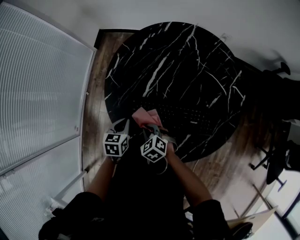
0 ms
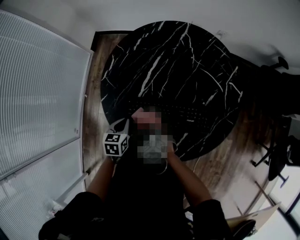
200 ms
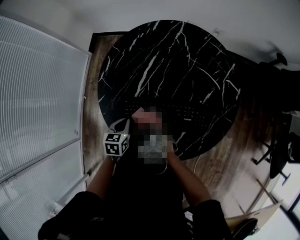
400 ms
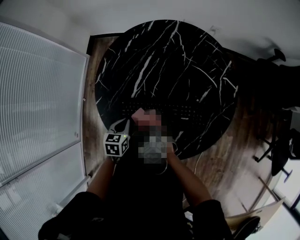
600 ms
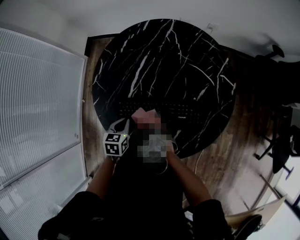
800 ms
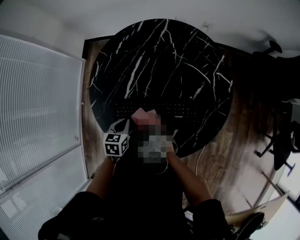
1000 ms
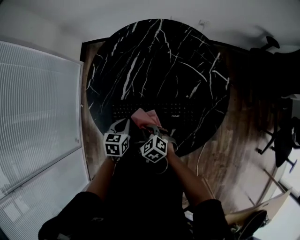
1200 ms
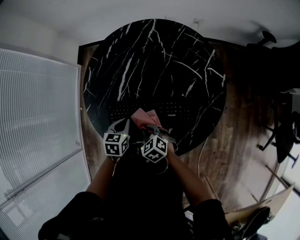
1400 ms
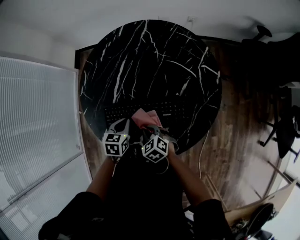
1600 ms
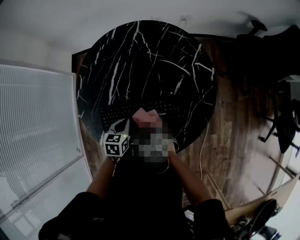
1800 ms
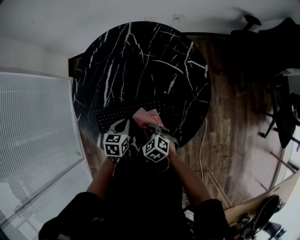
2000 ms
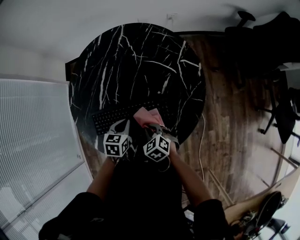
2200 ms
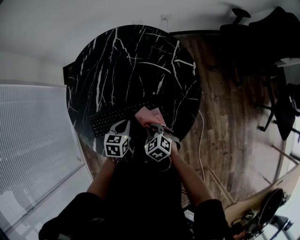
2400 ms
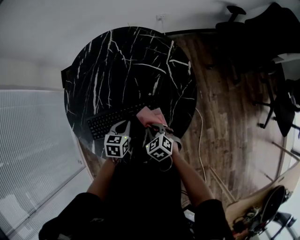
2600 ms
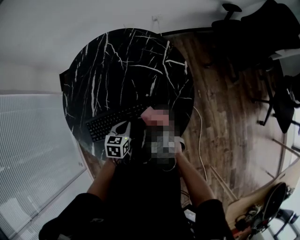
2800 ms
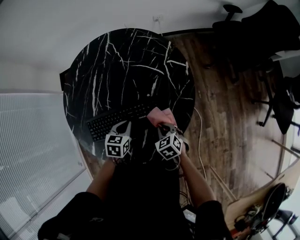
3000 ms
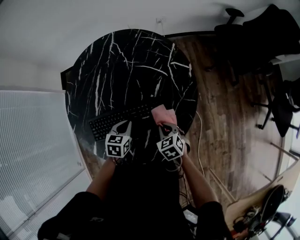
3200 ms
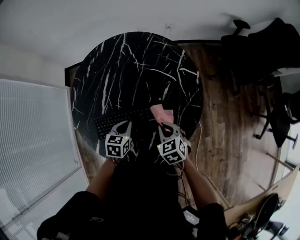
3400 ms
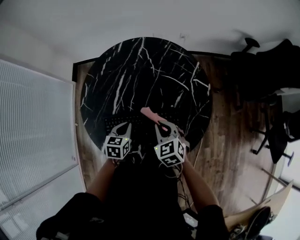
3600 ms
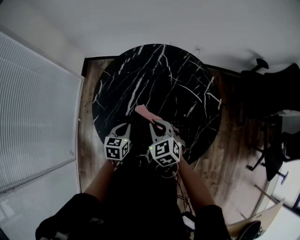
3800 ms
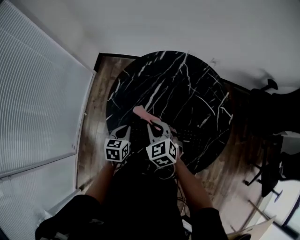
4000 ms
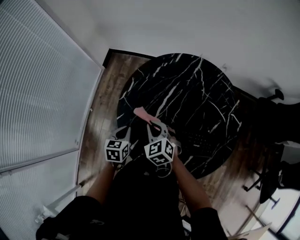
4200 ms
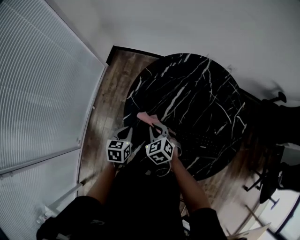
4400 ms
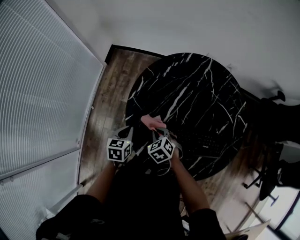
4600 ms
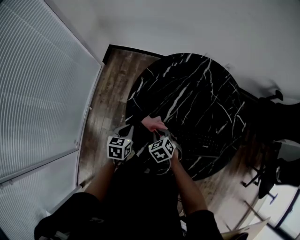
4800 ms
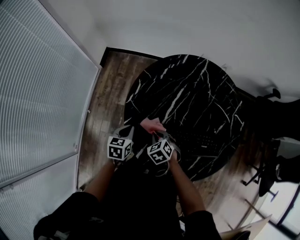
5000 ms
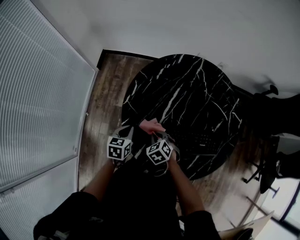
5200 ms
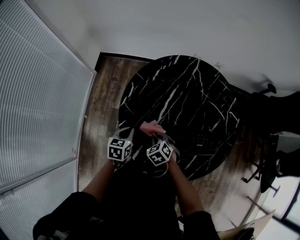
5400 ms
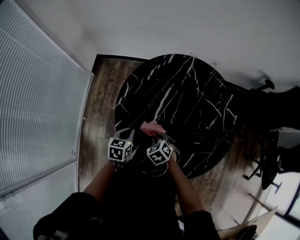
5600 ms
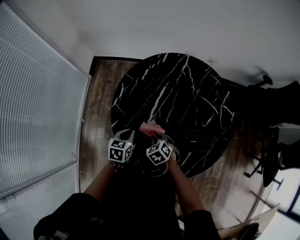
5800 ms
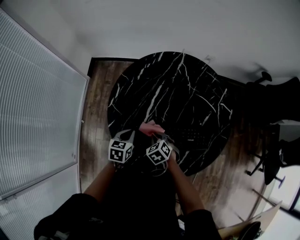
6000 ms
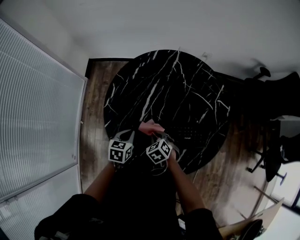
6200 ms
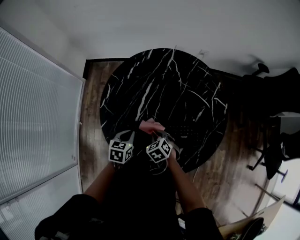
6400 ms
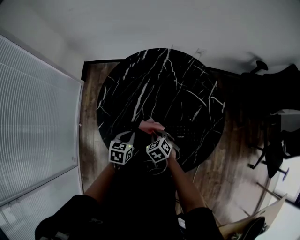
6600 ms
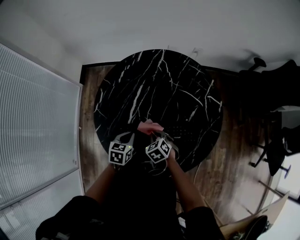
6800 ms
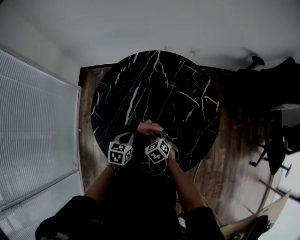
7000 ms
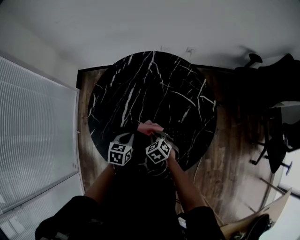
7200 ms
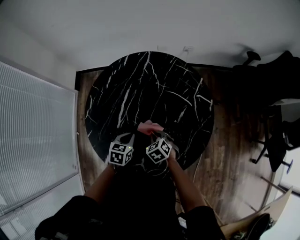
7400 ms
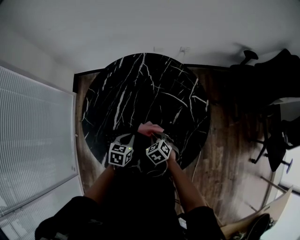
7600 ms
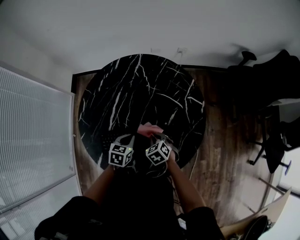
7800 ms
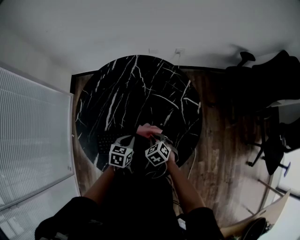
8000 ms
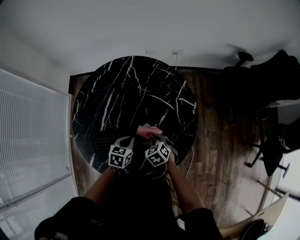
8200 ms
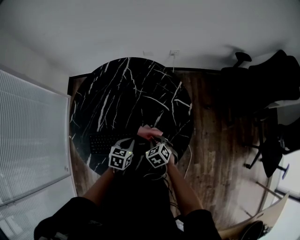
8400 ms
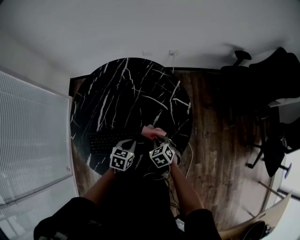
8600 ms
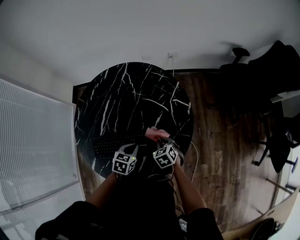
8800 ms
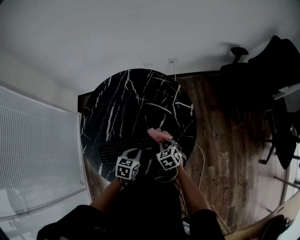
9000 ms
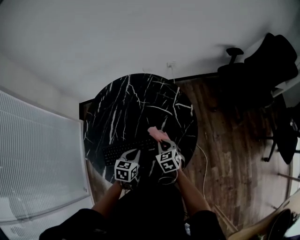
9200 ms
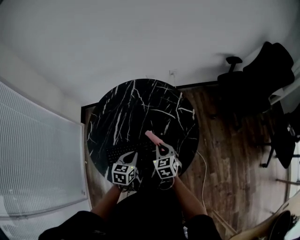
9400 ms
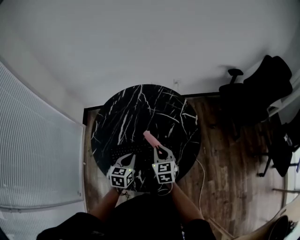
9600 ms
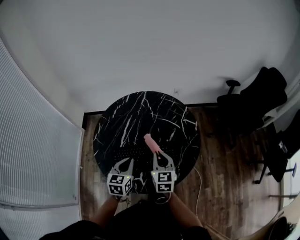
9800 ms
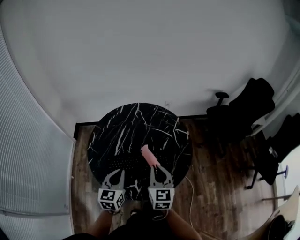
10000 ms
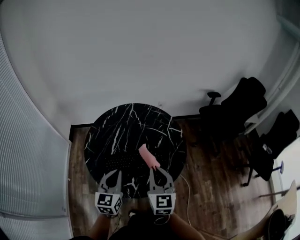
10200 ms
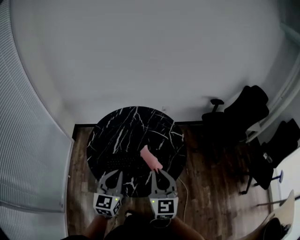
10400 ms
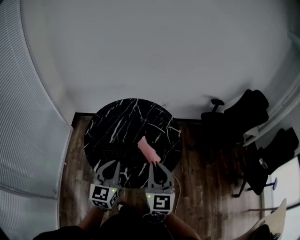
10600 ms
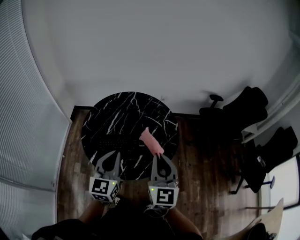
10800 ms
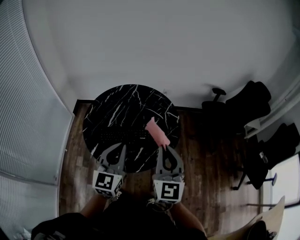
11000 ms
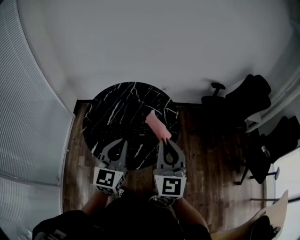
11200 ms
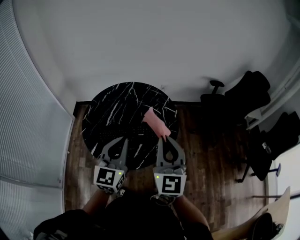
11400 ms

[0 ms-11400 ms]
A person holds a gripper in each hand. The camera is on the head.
0 ms to 1400 ms: The grippers both shift to the right by about 10 cm.
1400 ms to 2800 ms: Both grippers travel together to the right, some 15 cm. The right gripper turns by roughly 20 degrees.
2800 ms to 4200 ms: The grippers both shift to the left by some 35 cm. The left gripper rotates about 30 degrees, while the right gripper turns by approximately 30 degrees.
4200 ms to 5600 ms: The right gripper moves downward, approximately 10 cm, and rotates about 20 degrees.
5600 ms to 7200 ms: Both grippers move to the right, approximately 15 cm.
7200 ms to 8600 ms: Both grippers travel together to the right, about 20 cm.
8600 ms to 10000 ms: The right gripper moves upward and backward, approximately 30 cm, and tips its fingers upward by approximately 40 degrees. The left gripper moves upward, to the left and backward, about 30 cm, and tilts its fingers about 30 degrees upward.
10000 ms to 11400 ms: Both grippers travel together upward, to the right and backward, some 25 cm. The right gripper rotates some 20 degrees; the left gripper rotates some 20 degrees.

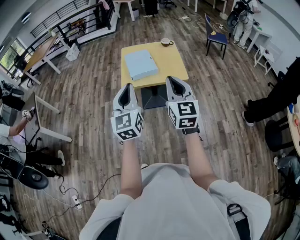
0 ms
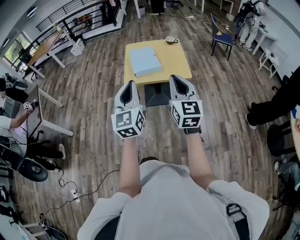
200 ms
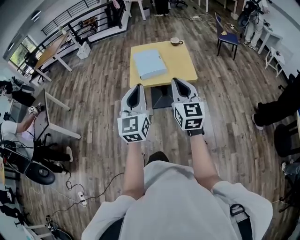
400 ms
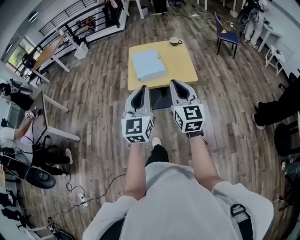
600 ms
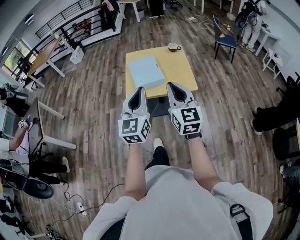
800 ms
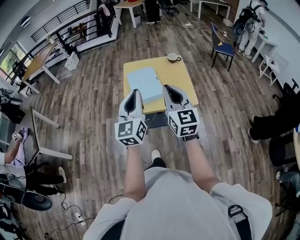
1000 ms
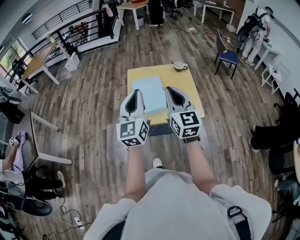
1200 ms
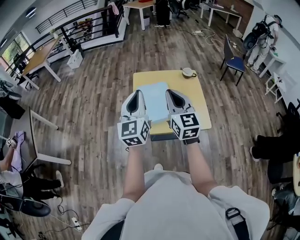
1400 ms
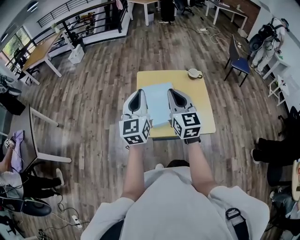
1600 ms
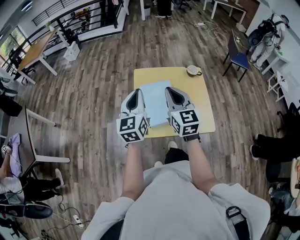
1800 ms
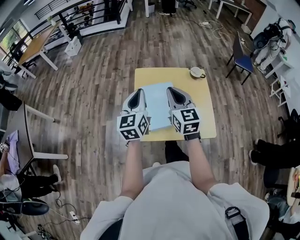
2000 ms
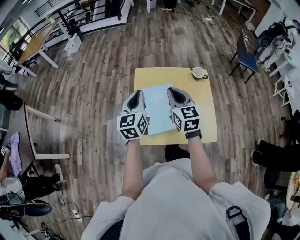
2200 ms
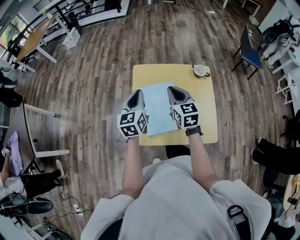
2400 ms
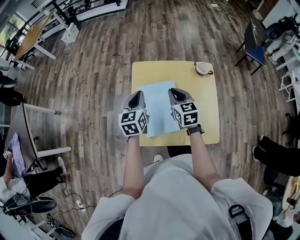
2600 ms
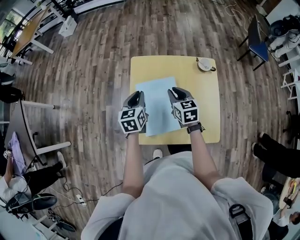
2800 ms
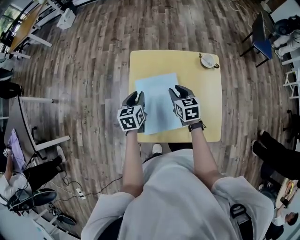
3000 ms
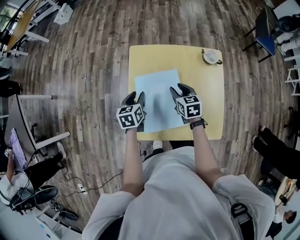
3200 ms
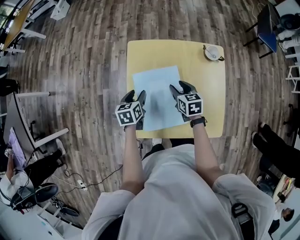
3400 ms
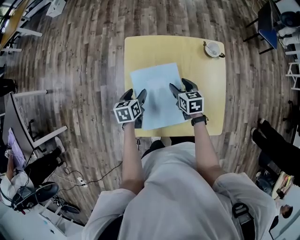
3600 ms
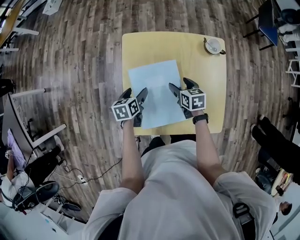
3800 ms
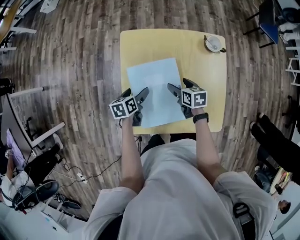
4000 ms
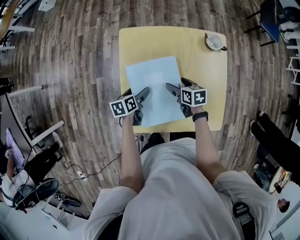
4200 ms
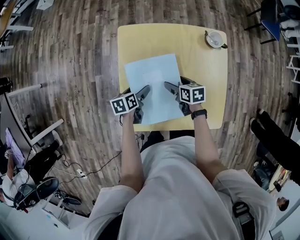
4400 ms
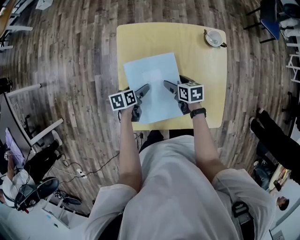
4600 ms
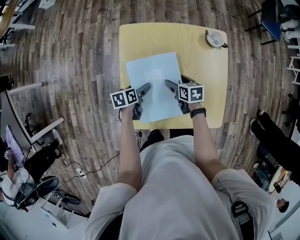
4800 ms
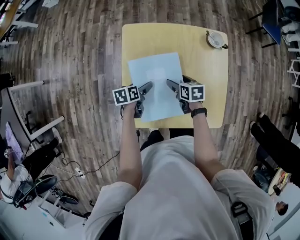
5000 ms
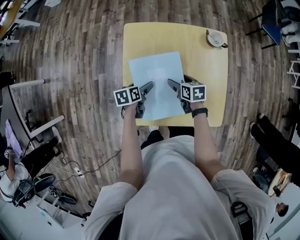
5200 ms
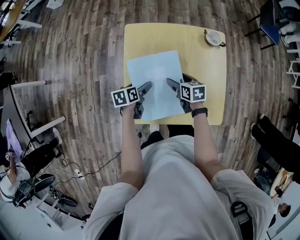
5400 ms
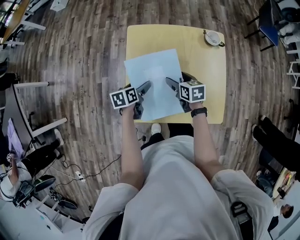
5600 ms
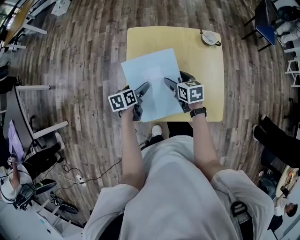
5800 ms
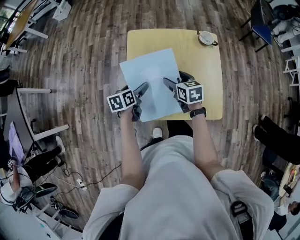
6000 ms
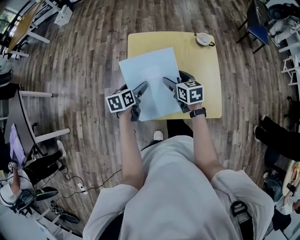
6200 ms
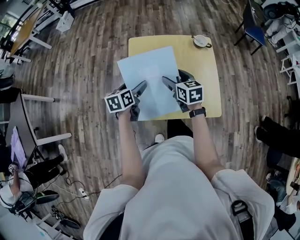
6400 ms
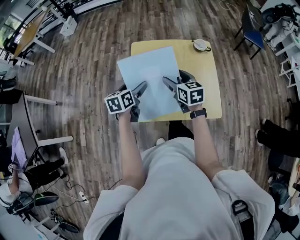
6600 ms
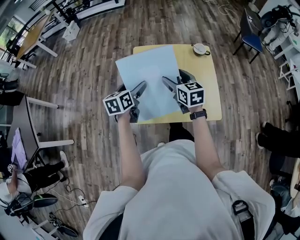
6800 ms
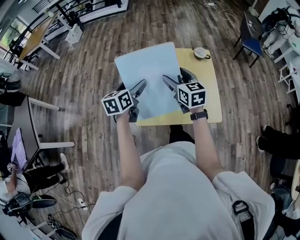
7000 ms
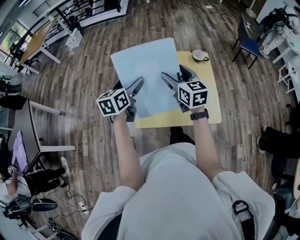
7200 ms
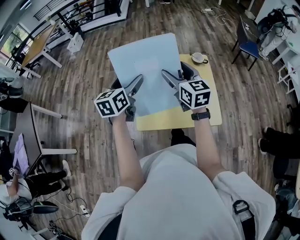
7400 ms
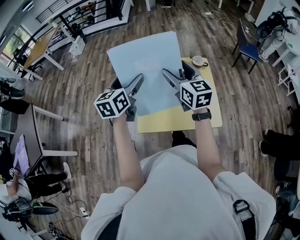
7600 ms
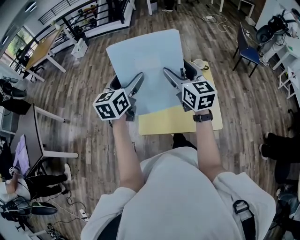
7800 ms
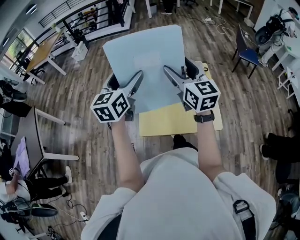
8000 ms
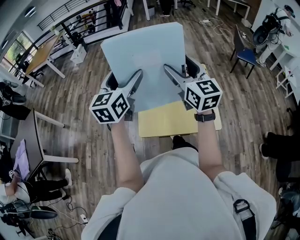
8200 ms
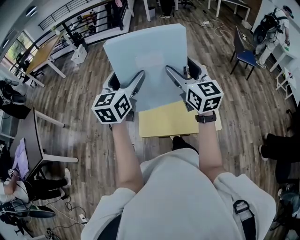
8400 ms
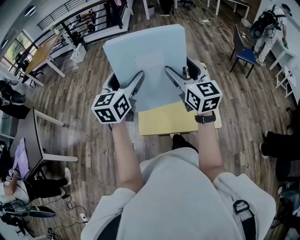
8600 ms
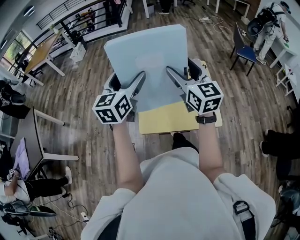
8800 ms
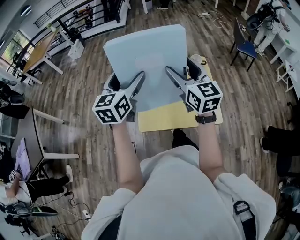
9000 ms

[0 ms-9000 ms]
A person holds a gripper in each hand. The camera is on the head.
0 ms to 1600 ms: Both grippers are carried forward, about 40 cm.
1600 ms to 3000 ms: The two grippers go about 35 cm downward and forward. The right gripper points its fingers approximately 30 degrees further downward; the left gripper tips its fingers downward by roughly 40 degrees.
3000 ms to 4400 ms: Both grippers move downward, roughly 15 cm. The right gripper changes its angle by roughly 30 degrees, and opens its fingers. Meanwhile the left gripper turns by about 30 degrees, and opens.
4400 ms to 6000 ms: Both grippers travel together upward, approximately 10 cm.
6000 ms to 7600 ms: The two grippers go approximately 30 cm upward. The right gripper points its fingers approximately 30 degrees further upward, while the left gripper changes its angle by about 40 degrees.
7600 ms to 9000 ms: The left gripper shifts roughly 5 cm upward. Meanwhile the right gripper ends up roughly 5 cm from where it was.

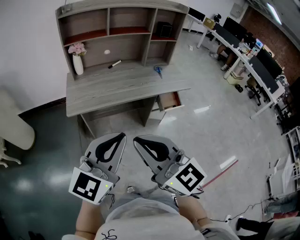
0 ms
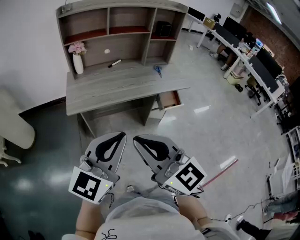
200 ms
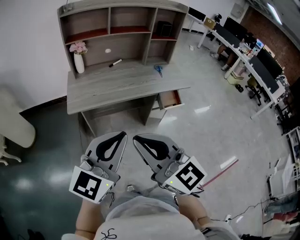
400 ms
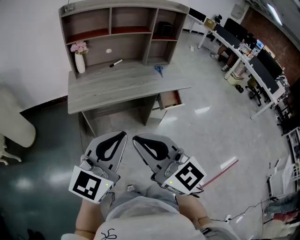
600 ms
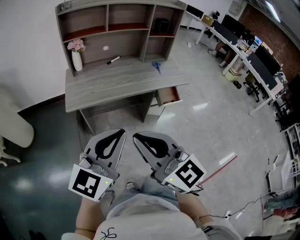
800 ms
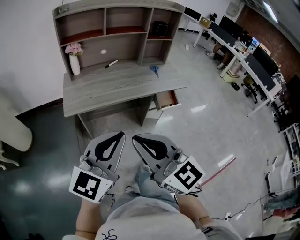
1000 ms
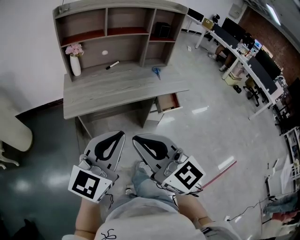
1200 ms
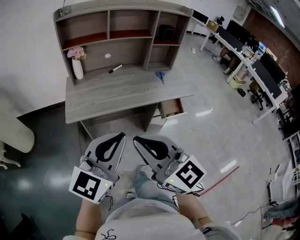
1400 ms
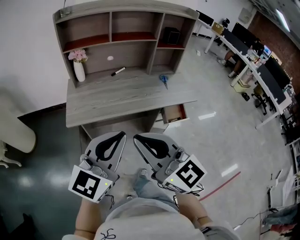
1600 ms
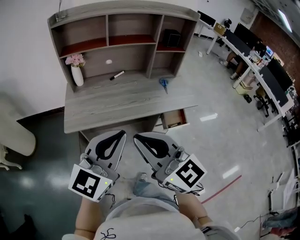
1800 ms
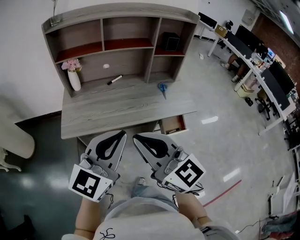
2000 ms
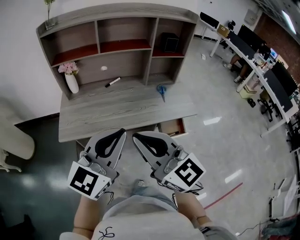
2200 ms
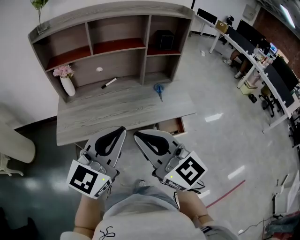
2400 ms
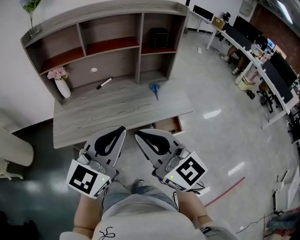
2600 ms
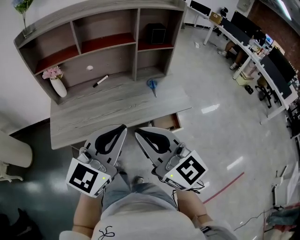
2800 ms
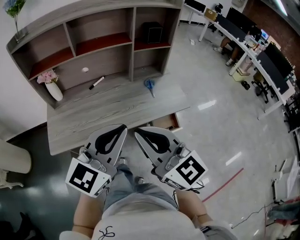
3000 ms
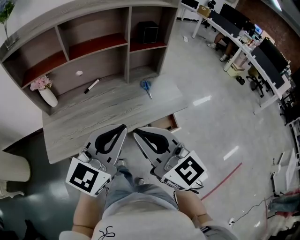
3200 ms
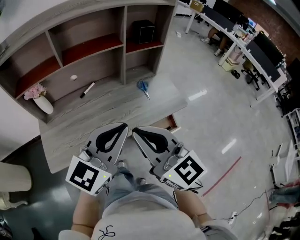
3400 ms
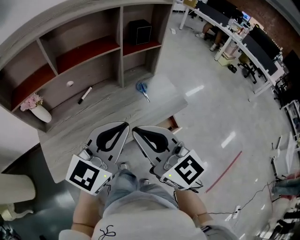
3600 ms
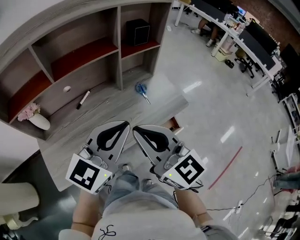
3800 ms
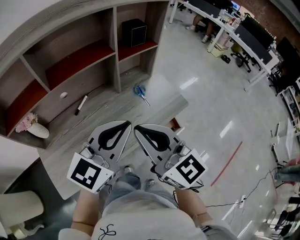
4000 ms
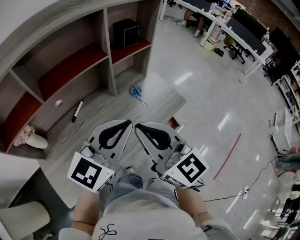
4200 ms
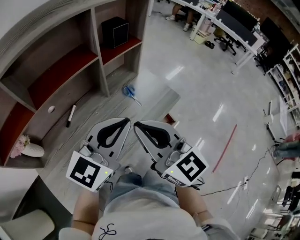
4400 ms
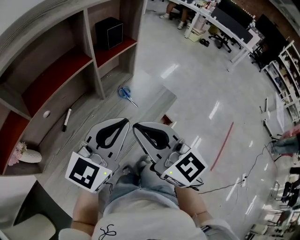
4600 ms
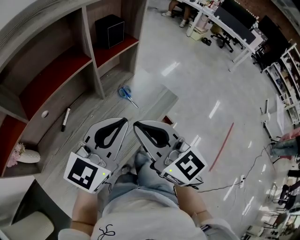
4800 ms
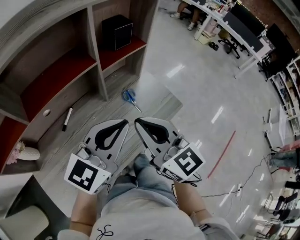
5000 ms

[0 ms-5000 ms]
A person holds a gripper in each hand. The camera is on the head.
0 ms to 1600 ms: The grippers both shift forward by roughly 10 cm.
1600 ms to 3400 ms: The two grippers go about 25 cm forward and to the right.
3400 ms to 5000 ms: The grippers both shift forward by about 20 cm. The right gripper swivels approximately 20 degrees.
